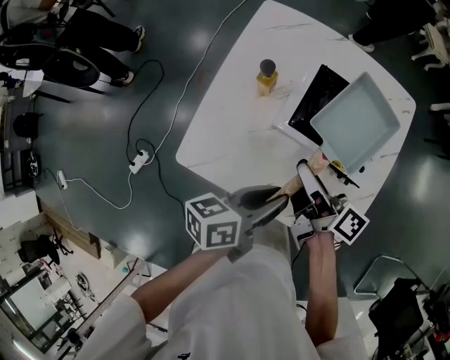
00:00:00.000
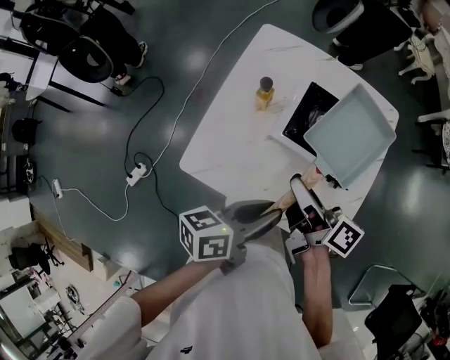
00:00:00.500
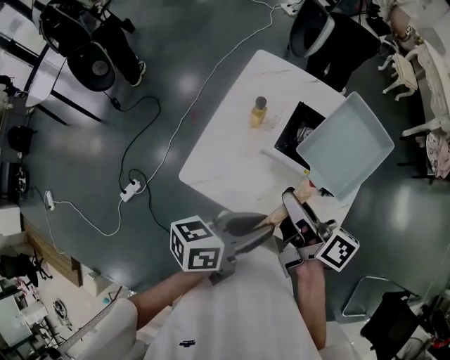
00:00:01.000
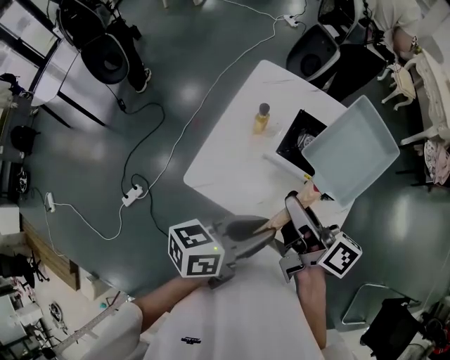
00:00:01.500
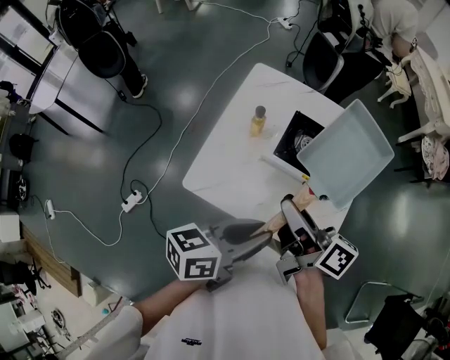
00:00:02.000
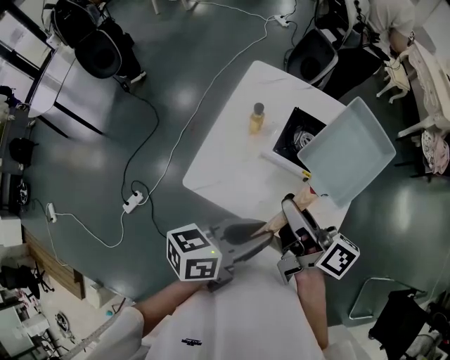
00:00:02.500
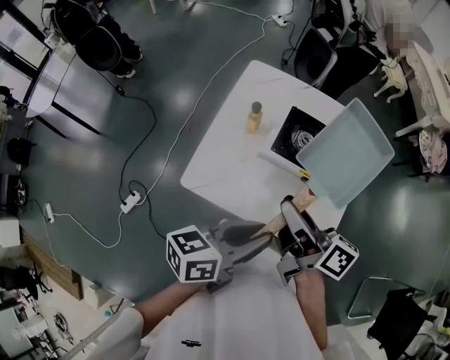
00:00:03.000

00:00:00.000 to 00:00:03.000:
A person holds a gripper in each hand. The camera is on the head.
00:00:00.000 to 00:00:01.500: The grippers both shift upward and backward by approximately 20 cm.
00:00:01.500 to 00:00:03.000: There are only small adjustments of the grippers.

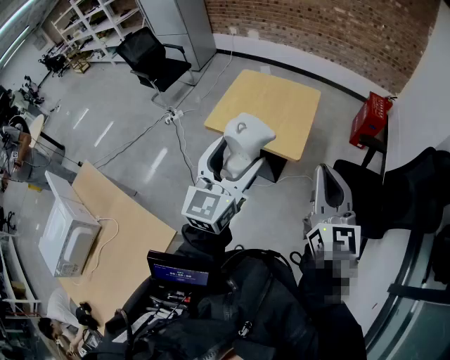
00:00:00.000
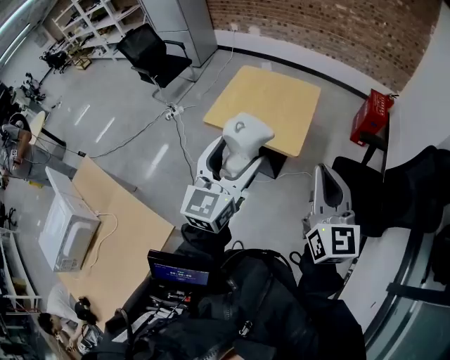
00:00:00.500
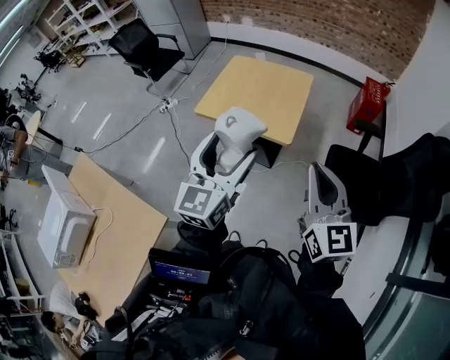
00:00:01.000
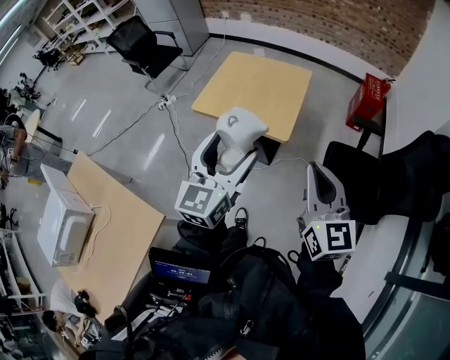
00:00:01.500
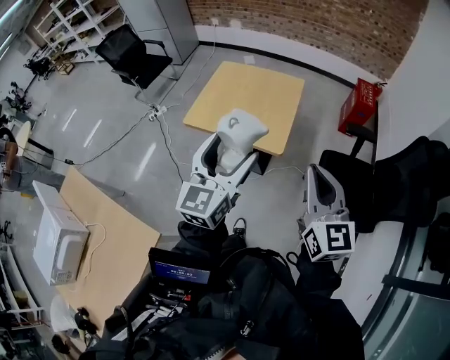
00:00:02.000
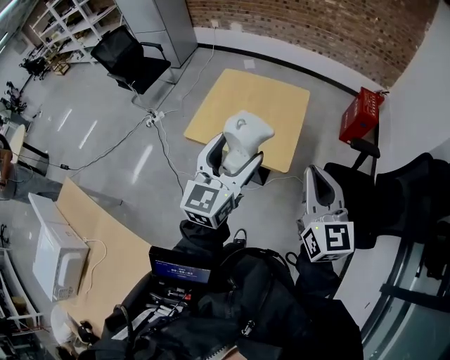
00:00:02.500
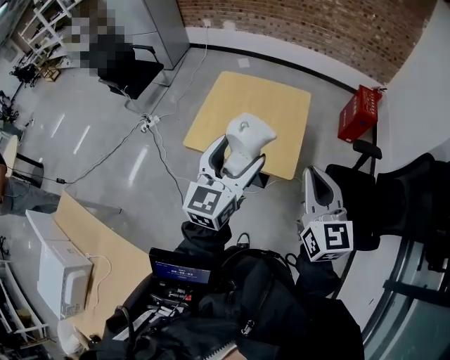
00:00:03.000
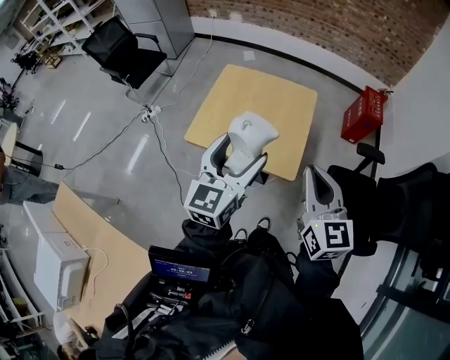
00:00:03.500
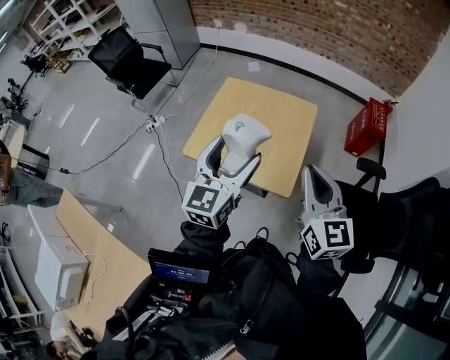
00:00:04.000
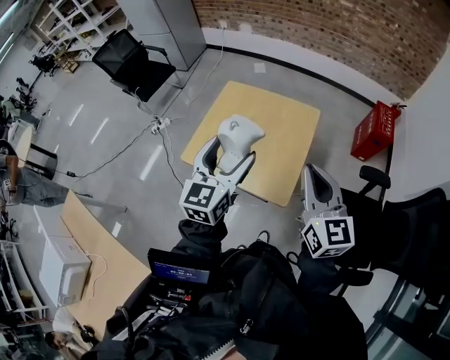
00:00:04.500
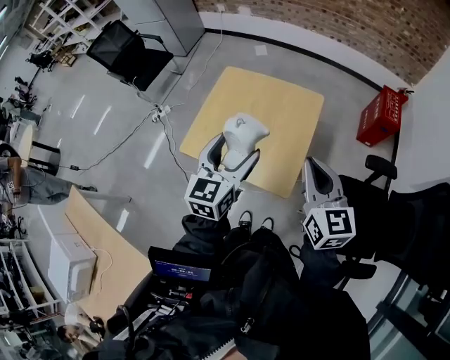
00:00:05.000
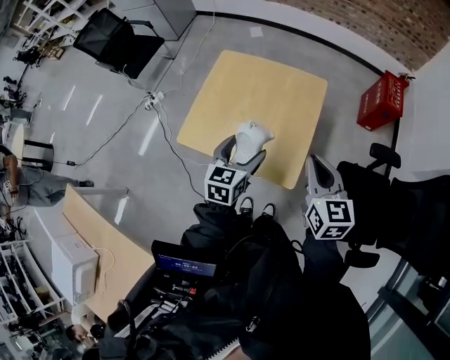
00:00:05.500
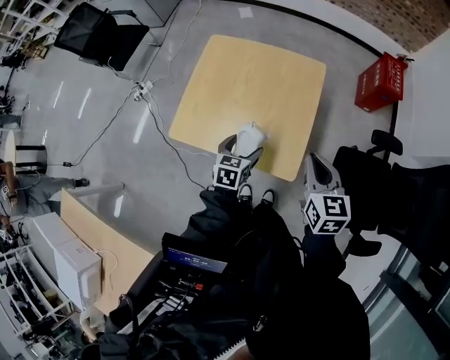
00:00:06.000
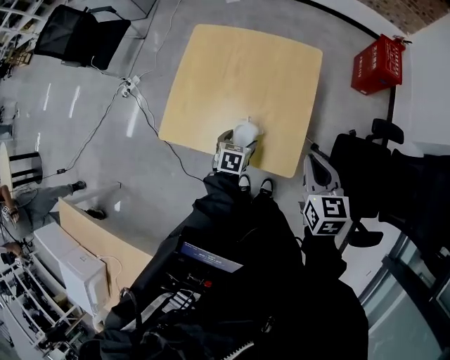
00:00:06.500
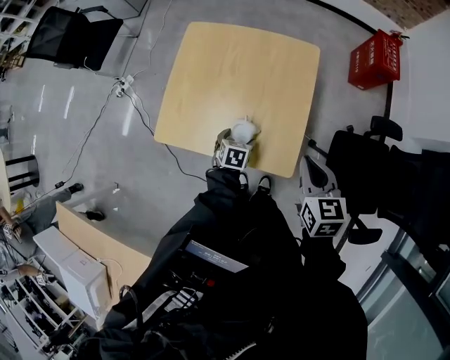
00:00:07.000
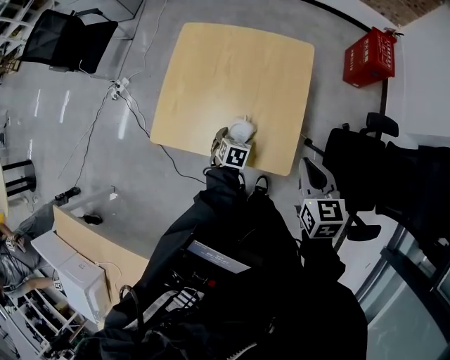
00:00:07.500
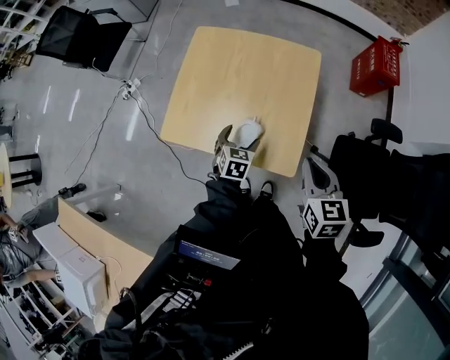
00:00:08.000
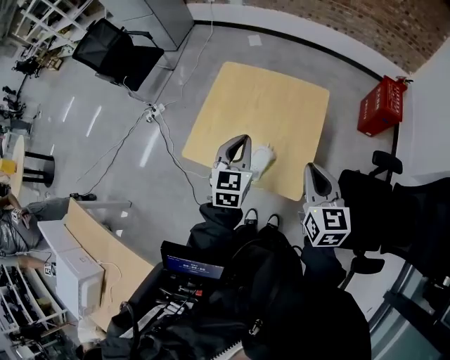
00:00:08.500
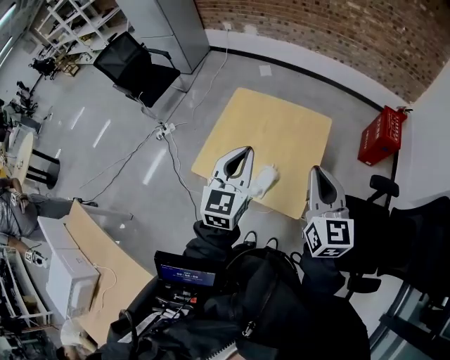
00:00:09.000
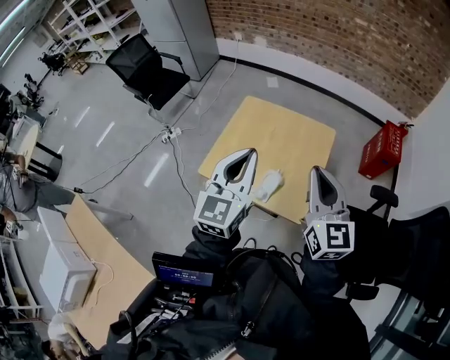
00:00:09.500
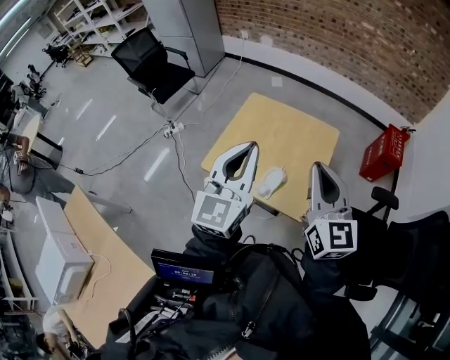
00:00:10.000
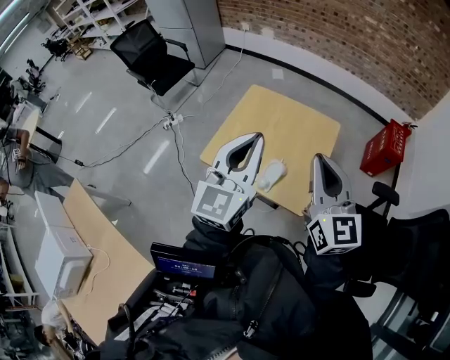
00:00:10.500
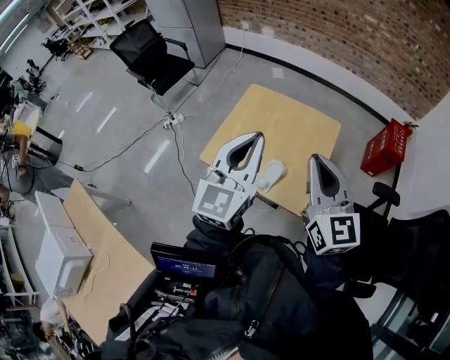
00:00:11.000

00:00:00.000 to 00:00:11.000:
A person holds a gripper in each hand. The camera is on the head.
00:00:00.000 to 00:00:02.000: Both grippers move to the right, roughly 5 cm.
00:00:02.000 to 00:00:03.500: Both grippers travel together forward and to the left, some 20 cm.
00:00:03.500 to 00:00:05.500: The right gripper goes roughly 20 cm forward, downward and to the right, while the left gripper is displaced downward and forward by about 25 cm, and changes its angle by some 30 degrees.
00:00:05.500 to 00:00:07.500: The right gripper heads downward, covering roughly 10 cm, while the left gripper is displaced downward by some 30 cm, and tips its fingers downward by some 40 degrees.
00:00:07.500 to 00:00:09.000: The left gripper goes about 40 cm upward, angles its fingers upward, by some 60 degrees, and closes, while the right gripper goes approximately 20 cm upward, and points its fingers about 30 degrees further upward.
00:00:09.000 to 00:00:11.000: The right gripper goes some 10 cm to the left and upward. The left gripper is displaced upward and backward by some 10 cm.

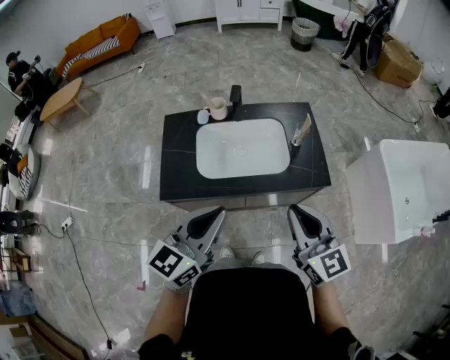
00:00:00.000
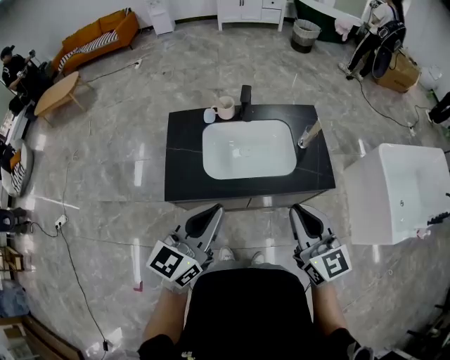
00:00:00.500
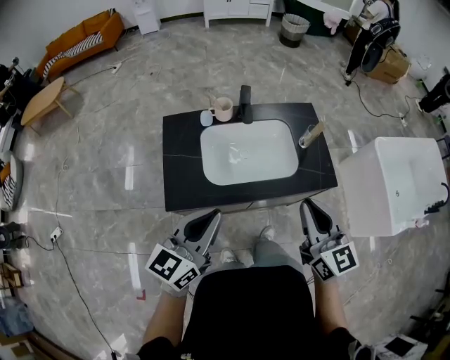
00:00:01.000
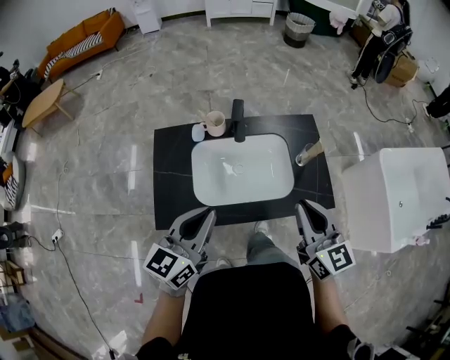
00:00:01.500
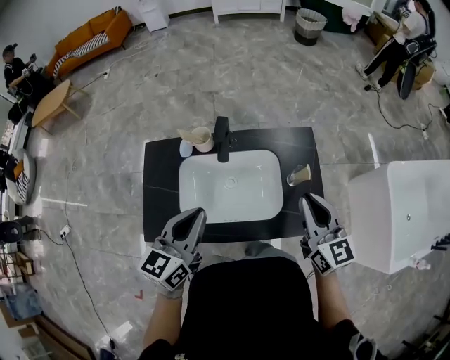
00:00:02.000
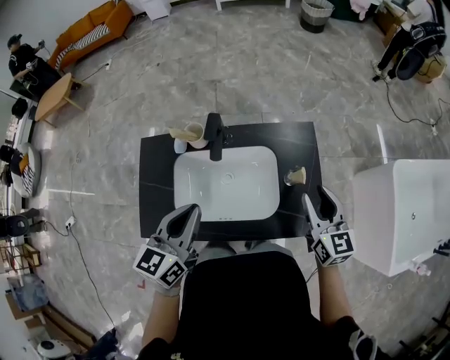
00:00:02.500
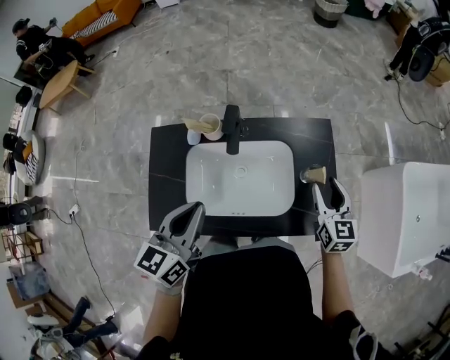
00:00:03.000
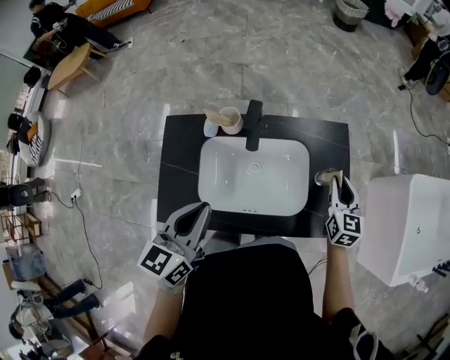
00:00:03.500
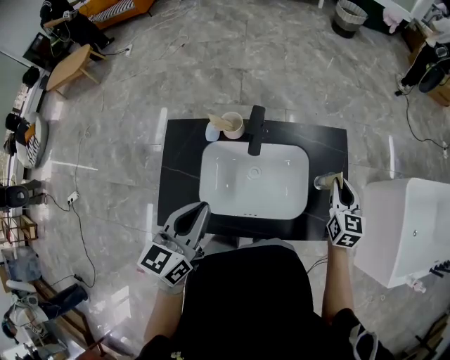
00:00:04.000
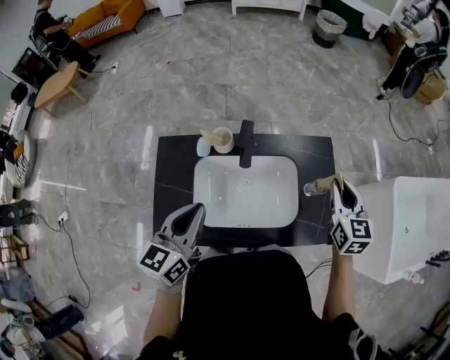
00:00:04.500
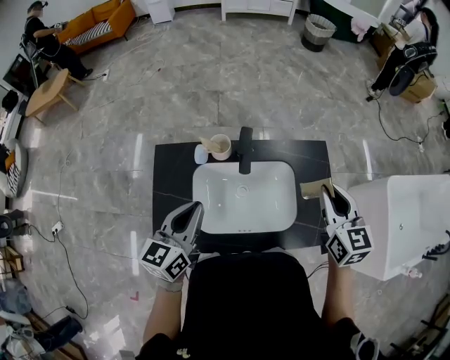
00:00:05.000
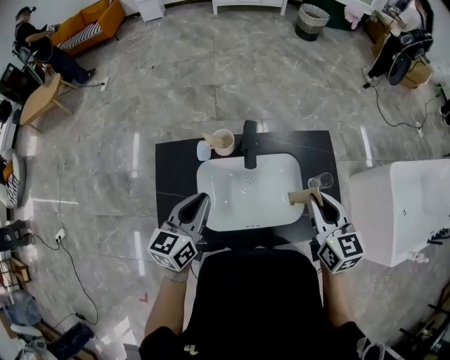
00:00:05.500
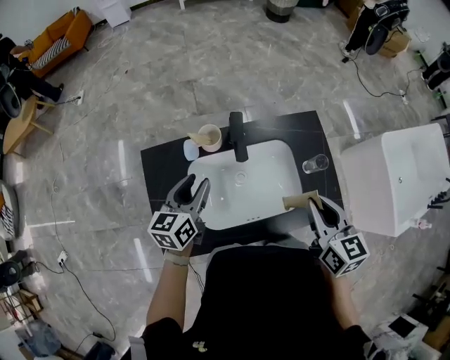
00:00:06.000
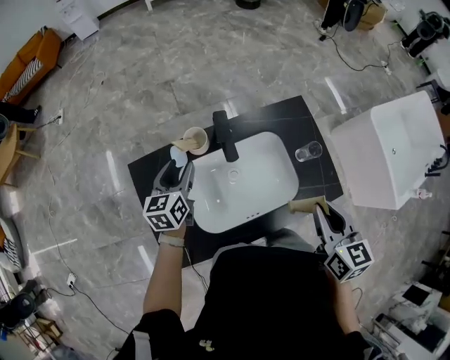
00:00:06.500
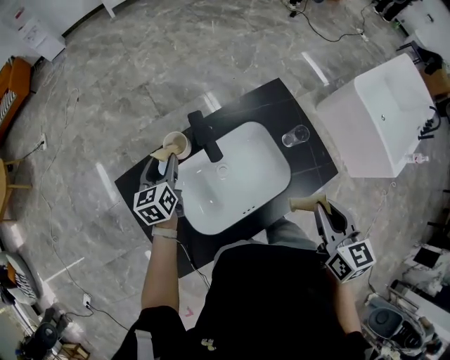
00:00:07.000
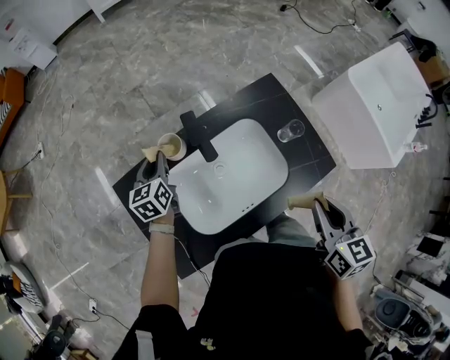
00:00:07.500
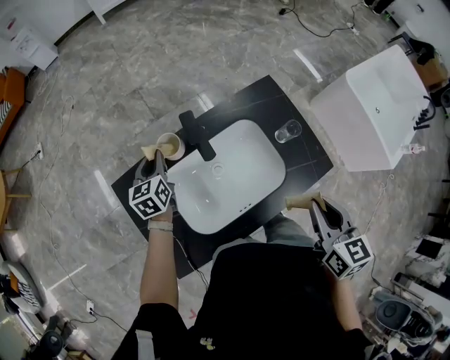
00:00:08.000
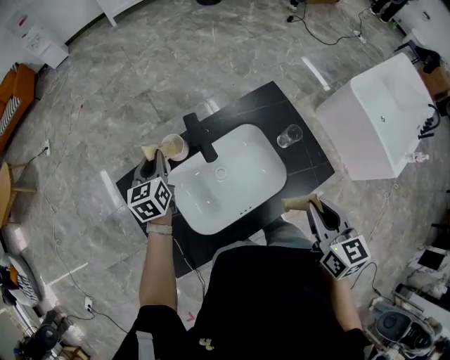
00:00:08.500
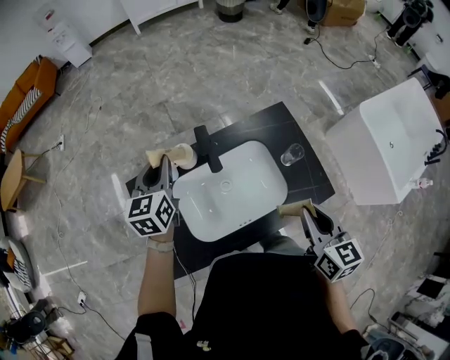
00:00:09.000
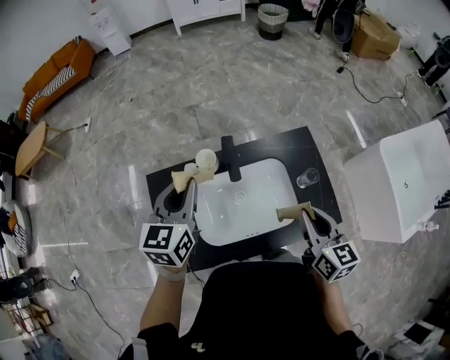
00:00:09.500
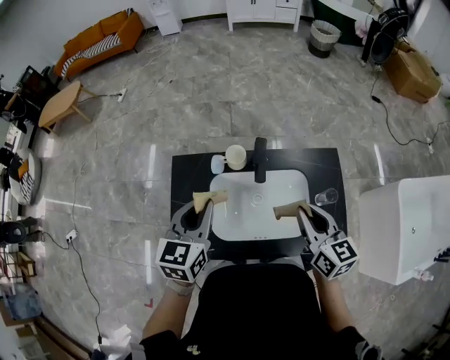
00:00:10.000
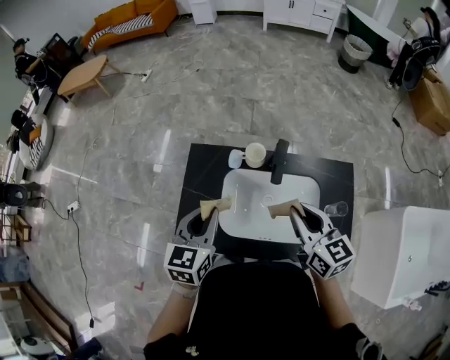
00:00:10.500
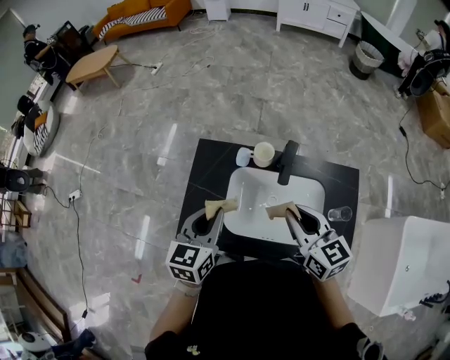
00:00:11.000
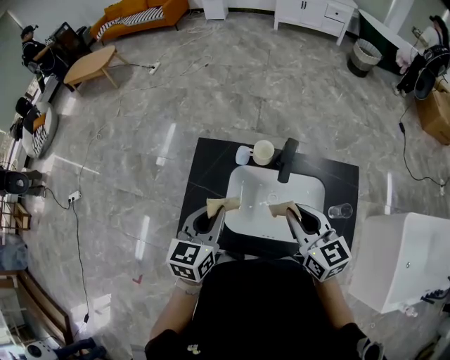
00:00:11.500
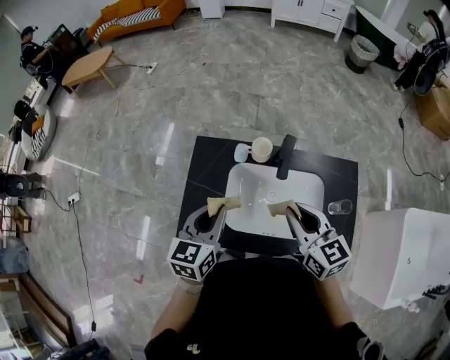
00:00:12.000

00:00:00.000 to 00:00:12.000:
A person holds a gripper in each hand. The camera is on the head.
00:00:00.000 to 00:00:02.000: The grippers both shift forward by roughly 25 cm.
00:00:02.000 to 00:00:04.000: The left gripper travels to the left by approximately 5 cm, while the right gripper travels downward and forward by roughly 15 cm, swivels some 20 degrees, and opens and closes again.
00:00:04.000 to 00:00:06.000: The left gripper is displaced forward, downward and to the left by roughly 15 cm, and opens; the right gripper shifts roughly 20 cm to the left, backward and upward.
00:00:06.000 to 00:00:08.000: The left gripper goes roughly 15 cm forward and downward, and closes up, while the right gripper heads backward and to the right, covering about 10 cm, and turns by approximately 20 degrees.
00:00:08.000 to 00:00:10.000: The right gripper goes some 15 cm forward and to the left, and changes its angle by approximately 40 degrees. Meanwhile the left gripper is displaced upward and backward by about 30 cm.
00:00:10.000 to 00:00:12.000: The left gripper changes place by some 5 cm. Meanwhile the right gripper shifts about 10 cm to the left.
